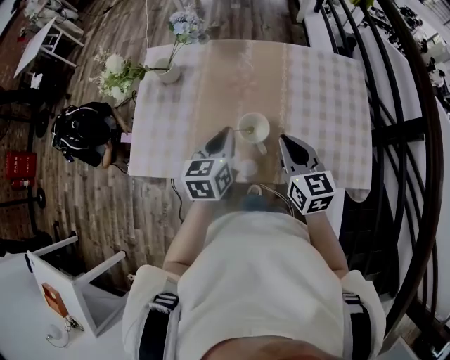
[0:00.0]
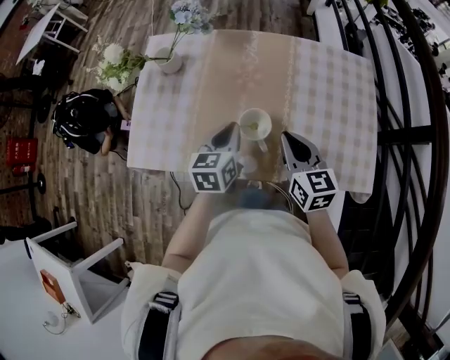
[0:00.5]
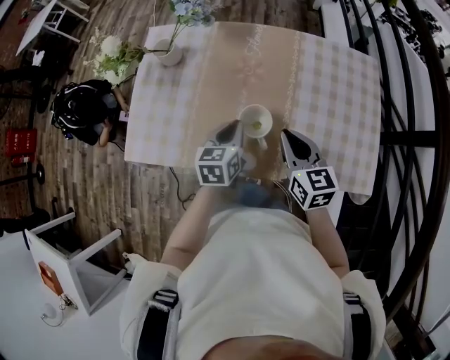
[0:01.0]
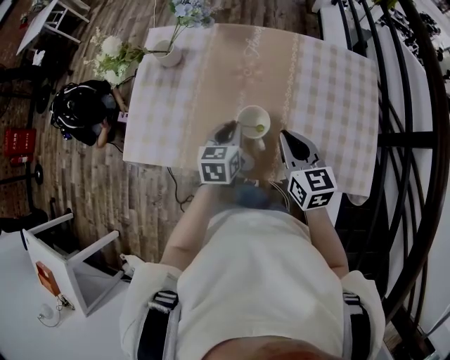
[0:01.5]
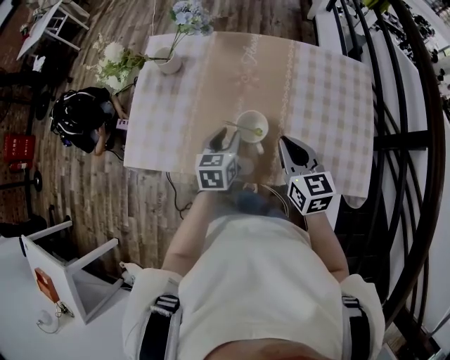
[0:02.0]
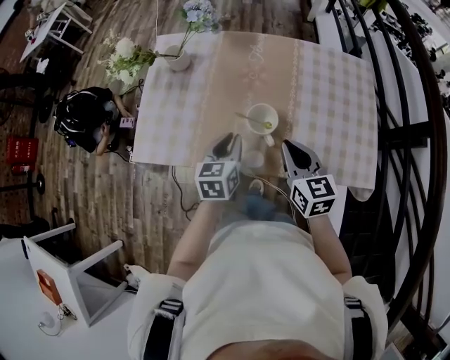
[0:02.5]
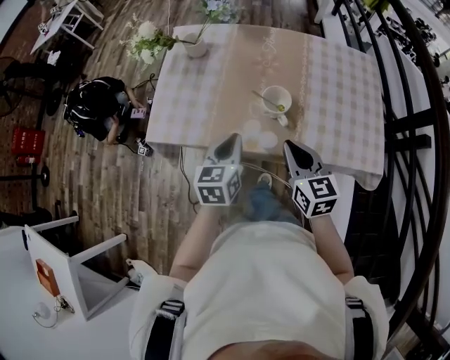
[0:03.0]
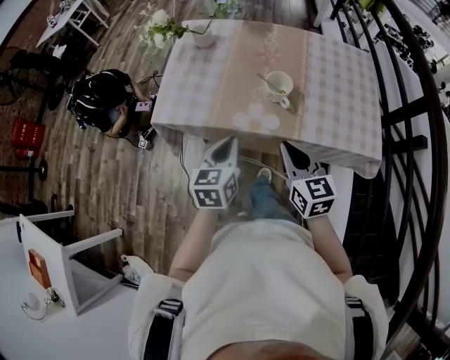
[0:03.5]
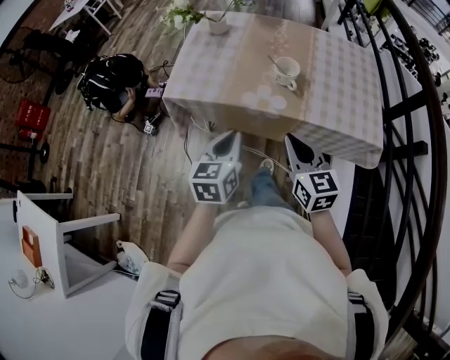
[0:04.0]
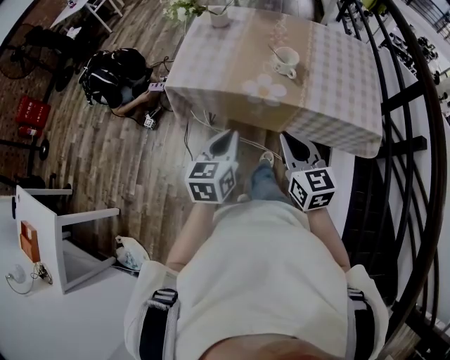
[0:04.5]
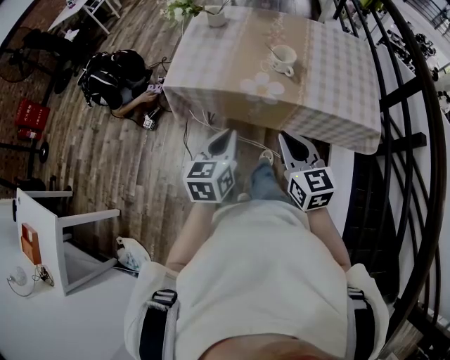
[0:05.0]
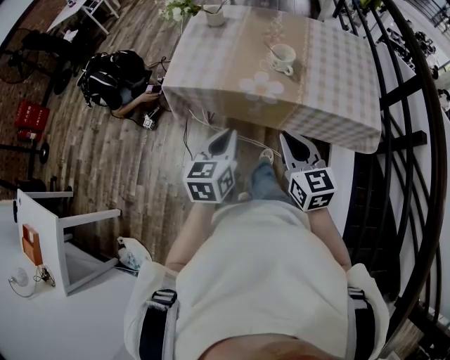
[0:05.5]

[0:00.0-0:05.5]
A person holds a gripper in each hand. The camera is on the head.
0.0 to 2.0 s: The left gripper travels downward by roughly 10 cm, and opens its fingers.
2.0 to 3.5 s: The right gripper travels backward and to the left by about 20 cm. The left gripper moves backward, to the left and upward, some 25 cm, and closes.
3.5 to 5.5 s: The grippers both shift backward by approximately 10 cm.

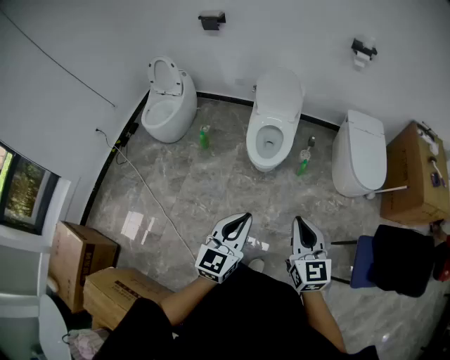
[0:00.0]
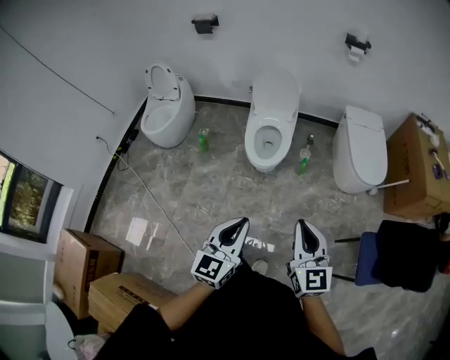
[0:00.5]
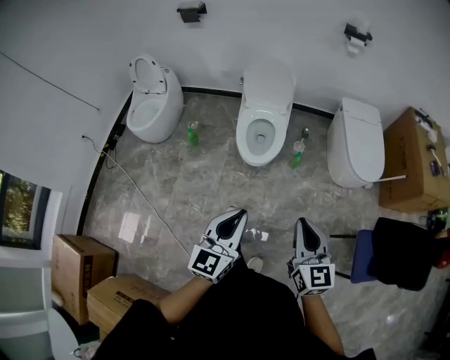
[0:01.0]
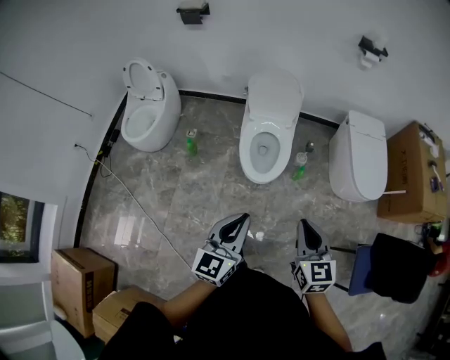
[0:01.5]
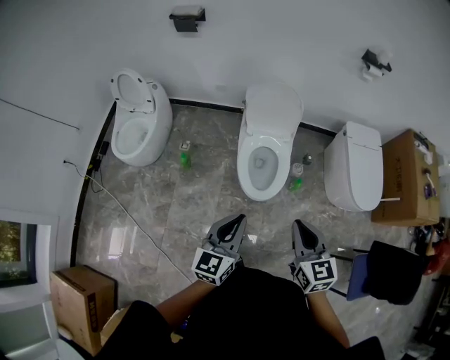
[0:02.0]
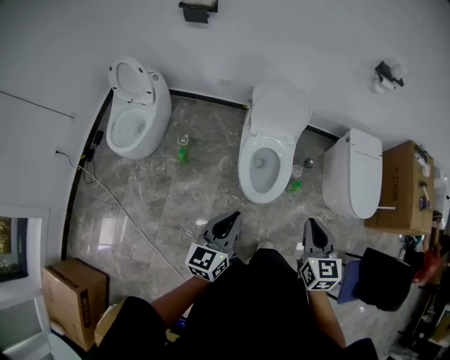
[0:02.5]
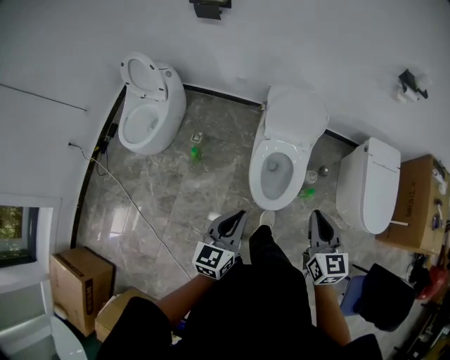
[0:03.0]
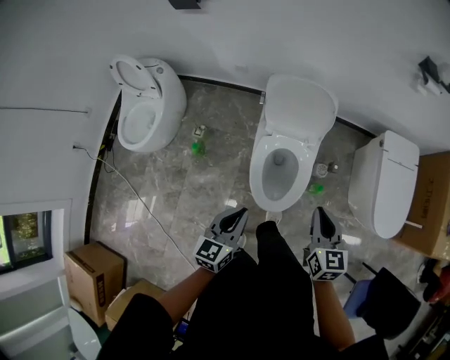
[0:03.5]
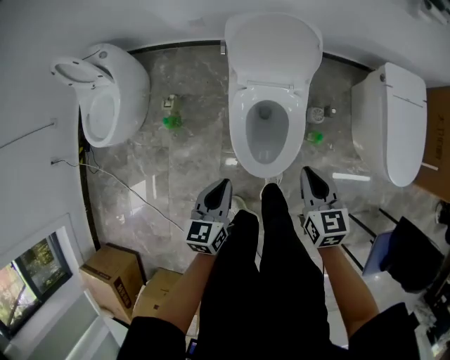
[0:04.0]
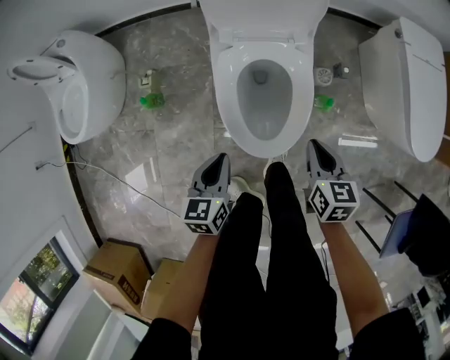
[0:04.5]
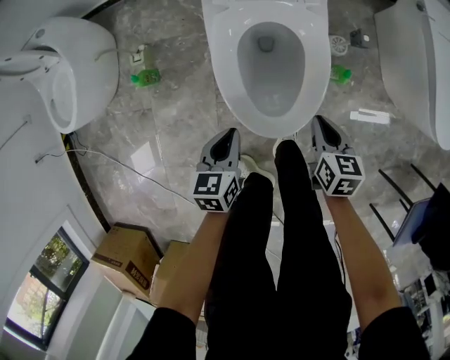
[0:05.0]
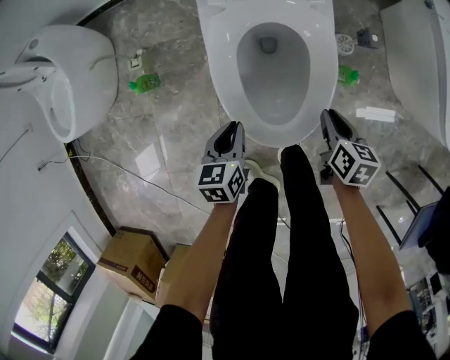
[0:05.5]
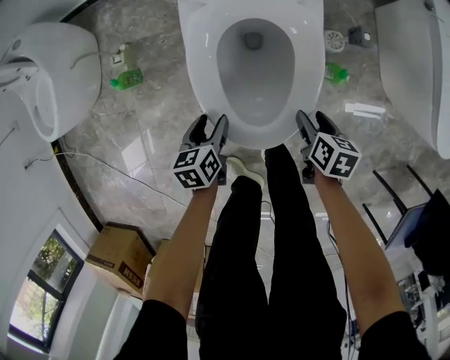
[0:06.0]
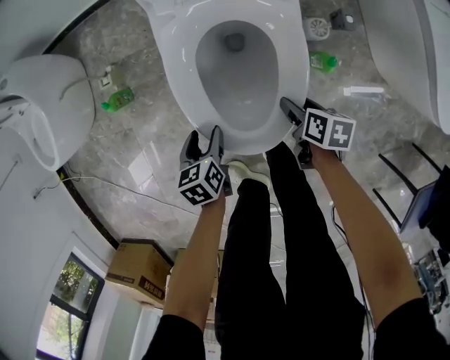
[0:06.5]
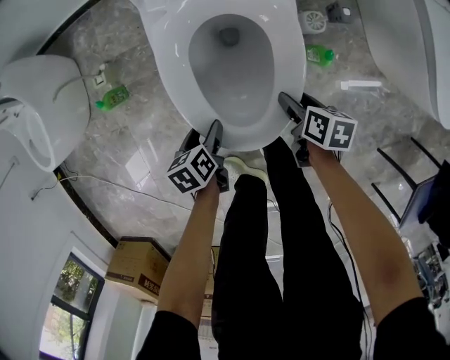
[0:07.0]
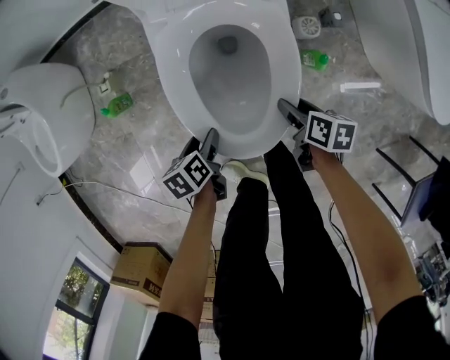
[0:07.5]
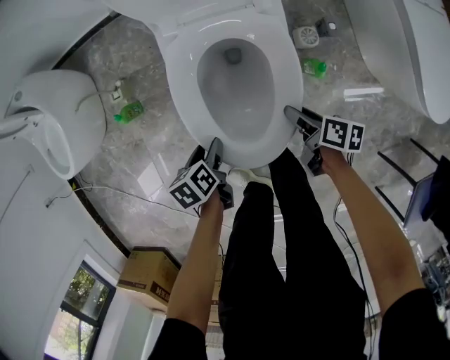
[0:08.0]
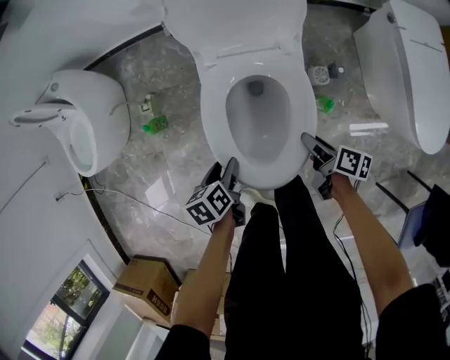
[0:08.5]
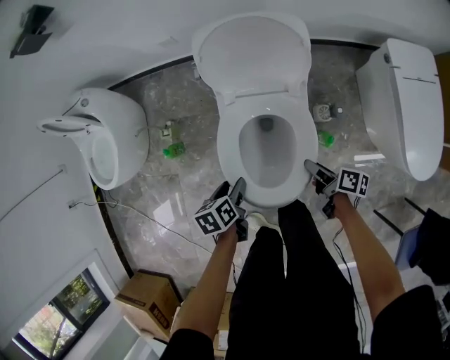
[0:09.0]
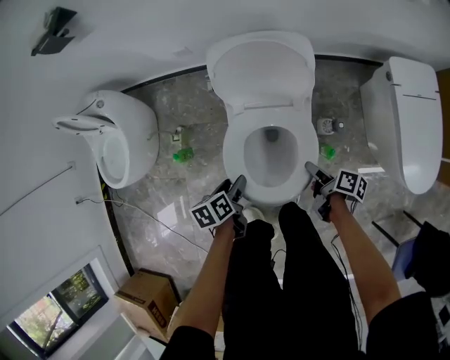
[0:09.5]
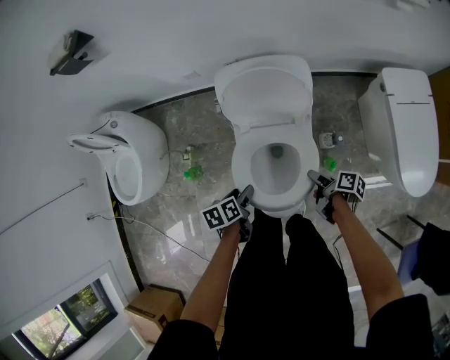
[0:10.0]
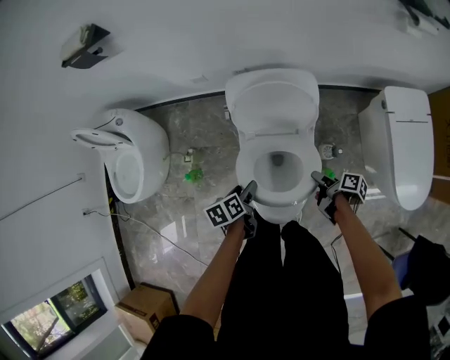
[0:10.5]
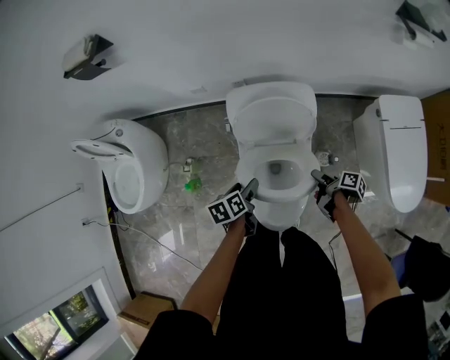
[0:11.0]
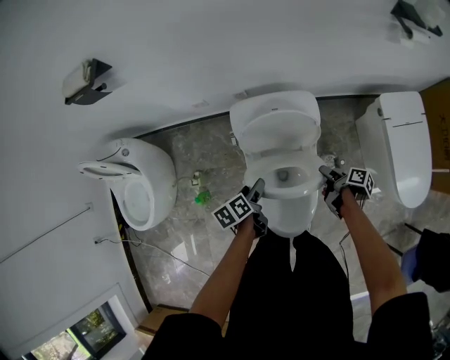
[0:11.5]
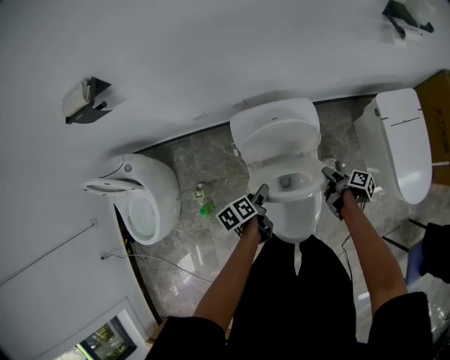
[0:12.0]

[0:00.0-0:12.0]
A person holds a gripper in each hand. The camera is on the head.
0.0 to 2.0 s: The left gripper heads forward and to the left, covering approximately 35 cm. Meanwhile the right gripper is displaced forward by some 30 cm.
2.0 to 4.0 s: The right gripper shifts roughly 40 cm forward and downward; the left gripper shifts approximately 40 cm downward and forward, and turns by some 20 degrees.
4.0 to 6.0 s: The grippers both shift downward by approximately 40 cm. The right gripper swivels about 40 degrees, and opens its fingers; the left gripper turns by about 20 degrees, and opens up.
6.0 to 8.0 s: The right gripper moves approximately 5 cm, and rotates some 30 degrees.
8.0 to 10.0 s: The two grippers go approximately 25 cm upward and forward.
10.0 to 12.0 s: The right gripper heads forward and upward, covering roughly 15 cm, while the left gripper moves forward, some 15 cm.

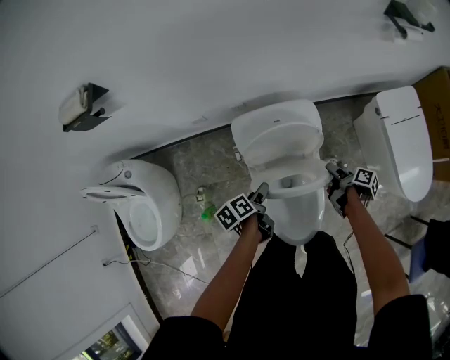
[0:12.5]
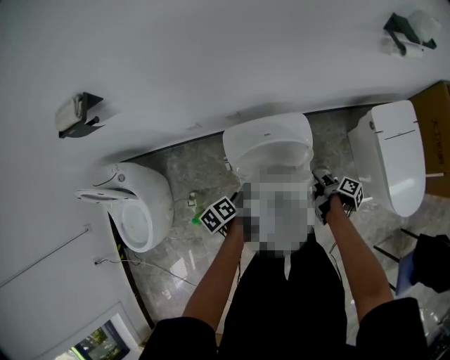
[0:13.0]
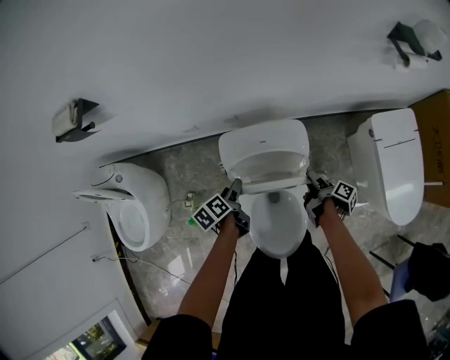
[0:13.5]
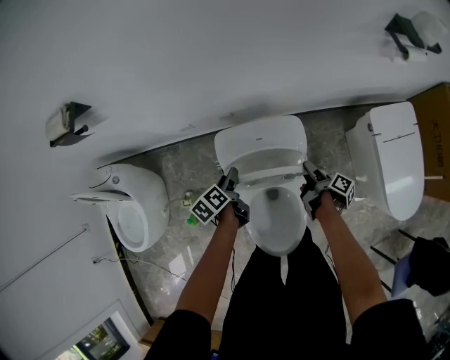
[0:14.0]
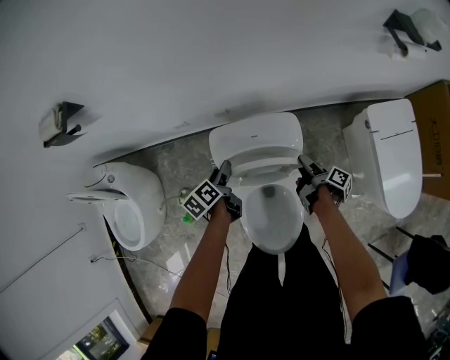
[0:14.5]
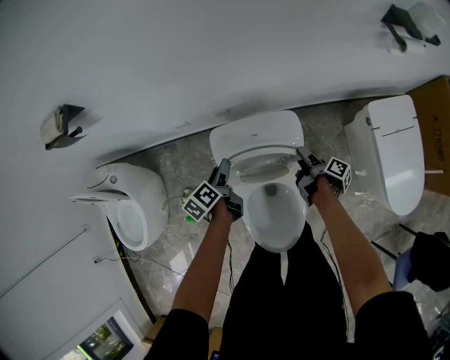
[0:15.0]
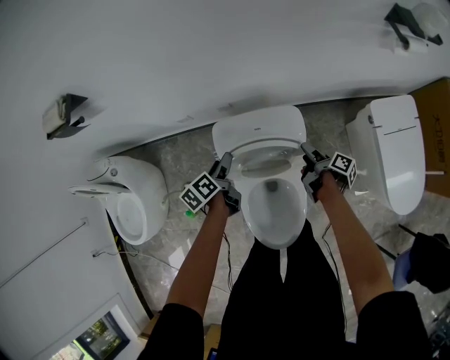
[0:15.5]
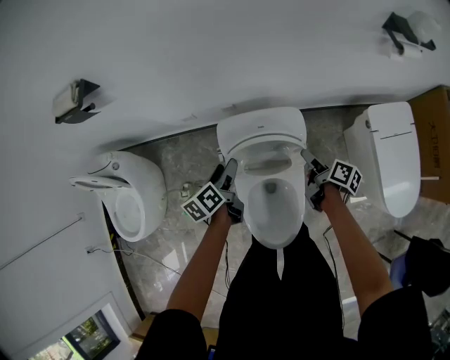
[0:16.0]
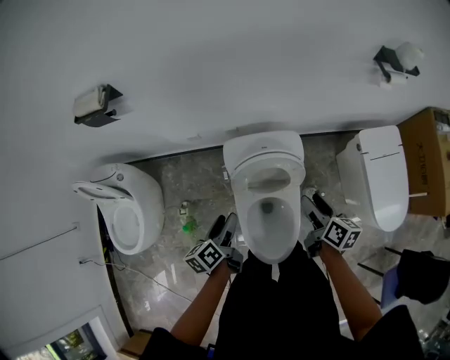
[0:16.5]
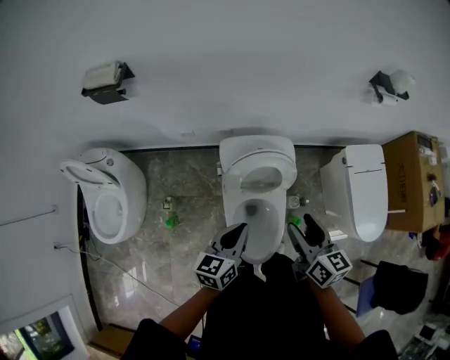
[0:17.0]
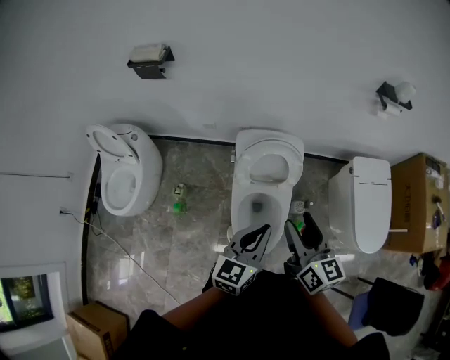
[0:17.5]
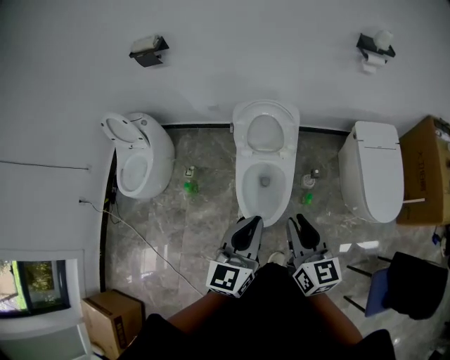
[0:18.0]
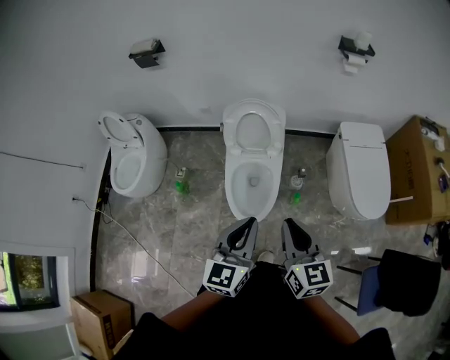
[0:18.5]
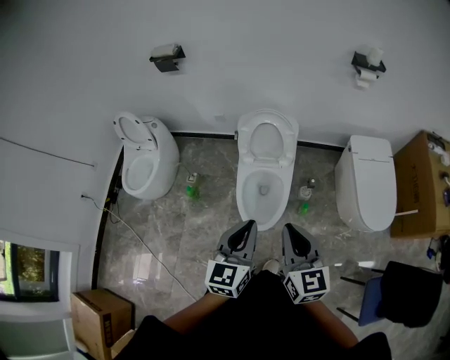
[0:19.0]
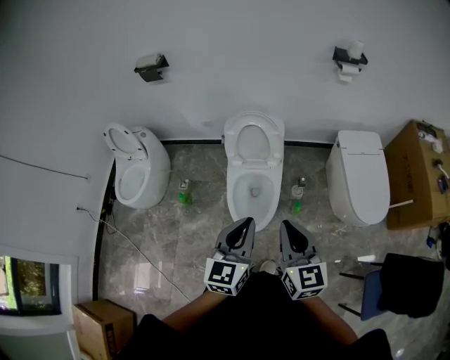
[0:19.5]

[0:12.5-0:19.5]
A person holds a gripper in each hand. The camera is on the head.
12.5 to 14.5 s: The grippers both shift forward by some 15 cm.
14.5 to 16.0 s: Both grippers travel together upward, some 10 cm. The right gripper rotates about 30 degrees.
16.0 to 17.5 s: The left gripper shifts approximately 40 cm backward and upward, turns by about 40 degrees, and closes up. Meanwhile the right gripper heads upward and backward, covering roughly 40 cm, and twists roughly 50 degrees counterclockwise, seen from behind.
17.5 to 19.5 s: Both grippers move backward, roughly 25 cm. The right gripper closes its fingers.

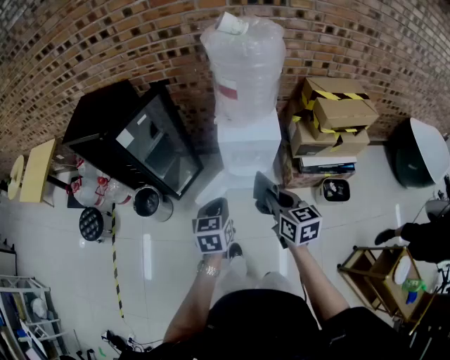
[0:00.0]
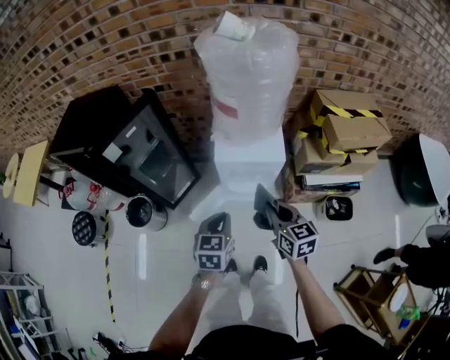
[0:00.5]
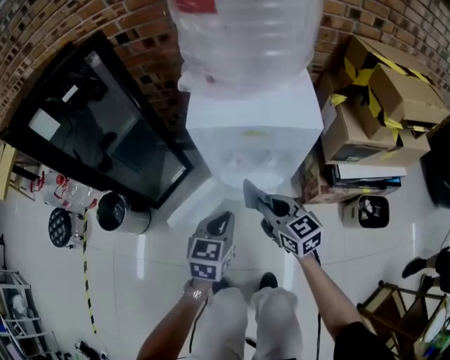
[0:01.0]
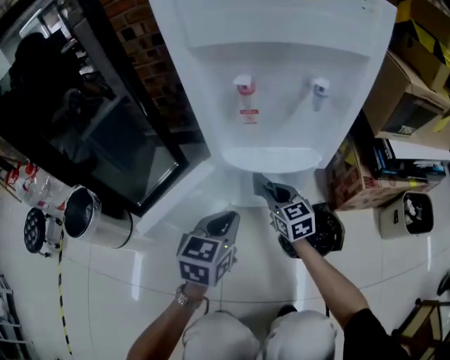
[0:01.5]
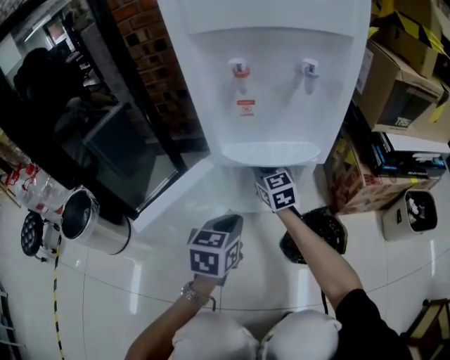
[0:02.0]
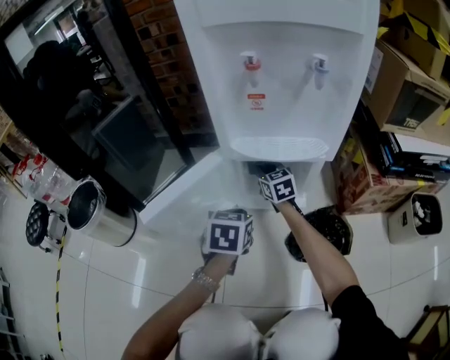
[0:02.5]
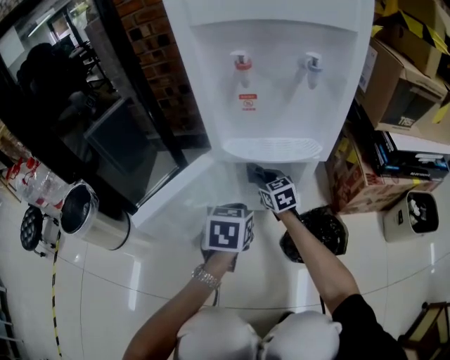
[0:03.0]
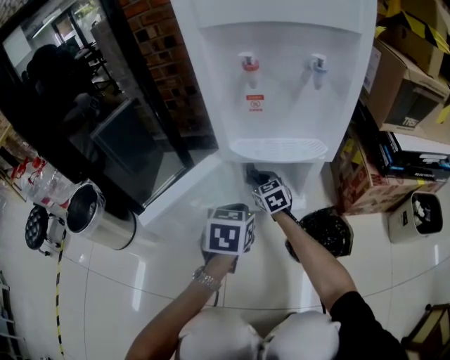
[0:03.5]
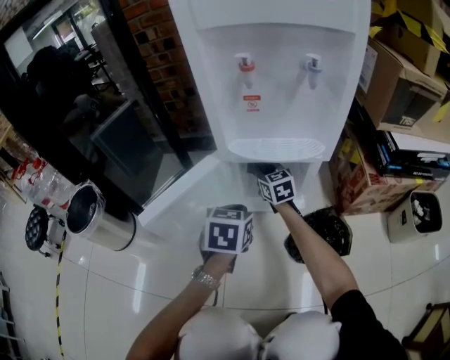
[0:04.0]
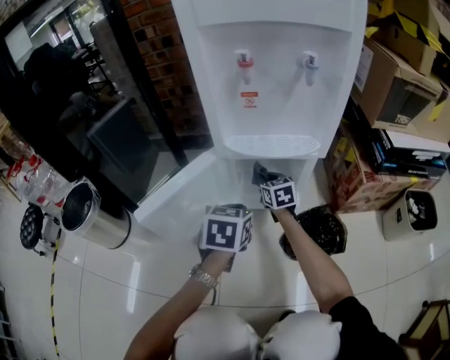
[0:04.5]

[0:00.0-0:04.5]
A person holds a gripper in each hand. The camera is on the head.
0.0 to 2.0 s: The left gripper shifts about 70 cm downward; the right gripper travels downward and forward by roughly 80 cm, and changes its angle by roughly 20 degrees.
2.0 to 4.5 s: The right gripper swings up and down, approximately 10 cm each way, with 2 reversals, and rotates about 20 degrees.
